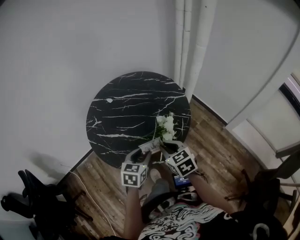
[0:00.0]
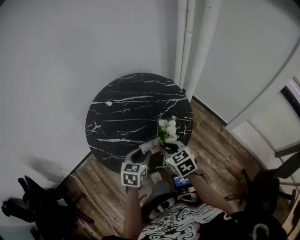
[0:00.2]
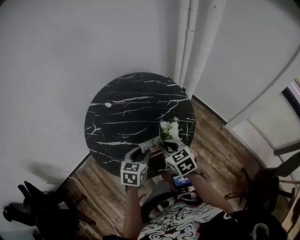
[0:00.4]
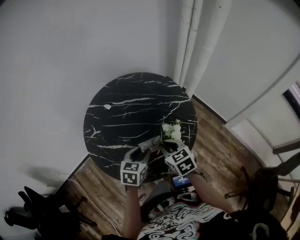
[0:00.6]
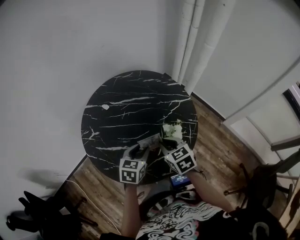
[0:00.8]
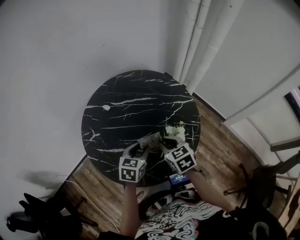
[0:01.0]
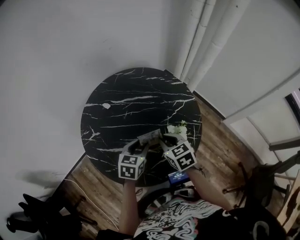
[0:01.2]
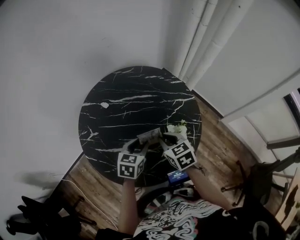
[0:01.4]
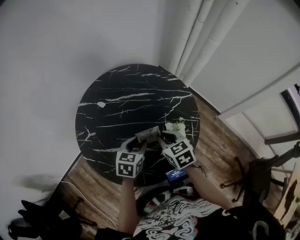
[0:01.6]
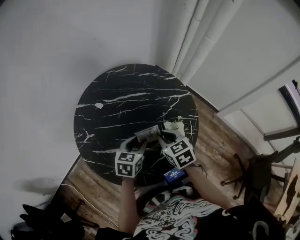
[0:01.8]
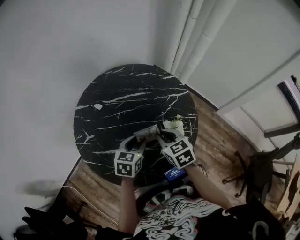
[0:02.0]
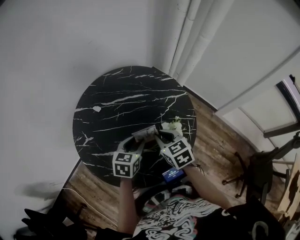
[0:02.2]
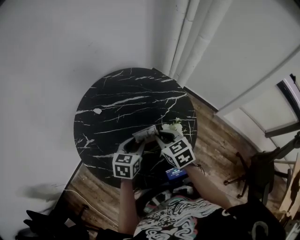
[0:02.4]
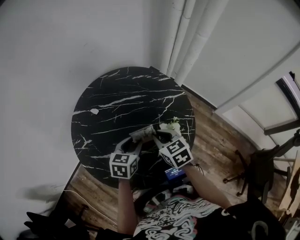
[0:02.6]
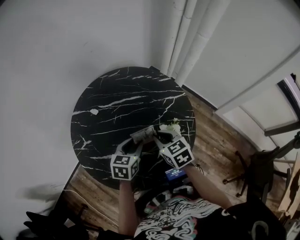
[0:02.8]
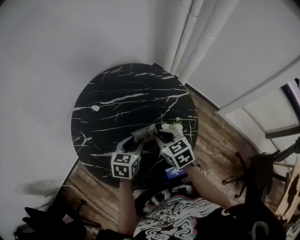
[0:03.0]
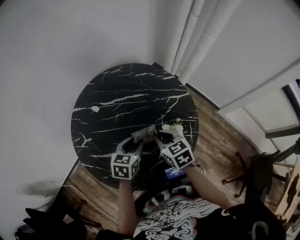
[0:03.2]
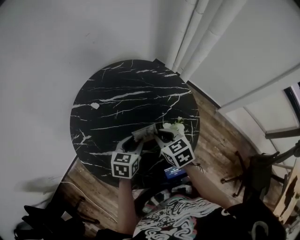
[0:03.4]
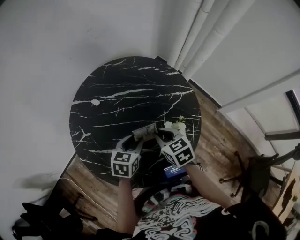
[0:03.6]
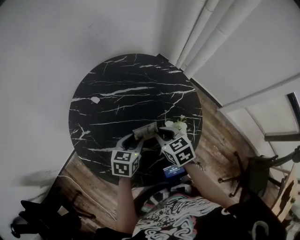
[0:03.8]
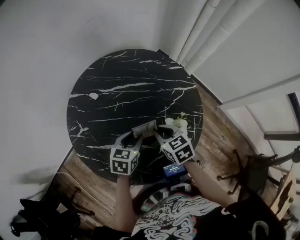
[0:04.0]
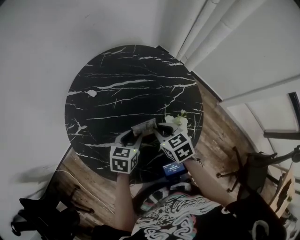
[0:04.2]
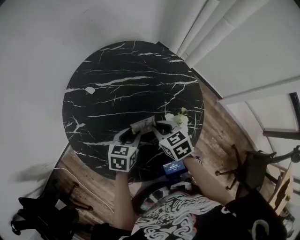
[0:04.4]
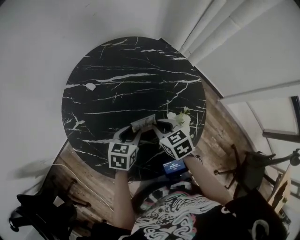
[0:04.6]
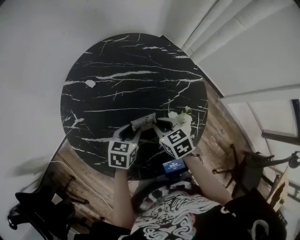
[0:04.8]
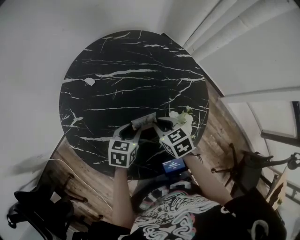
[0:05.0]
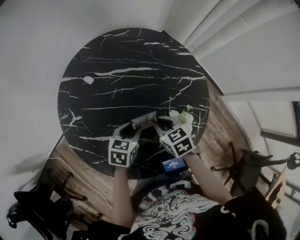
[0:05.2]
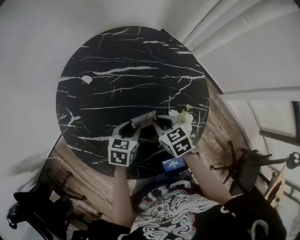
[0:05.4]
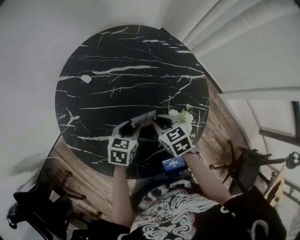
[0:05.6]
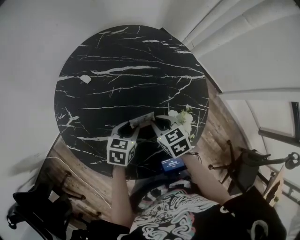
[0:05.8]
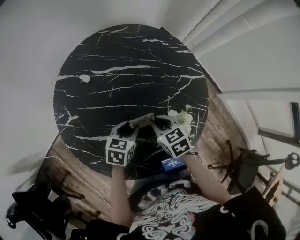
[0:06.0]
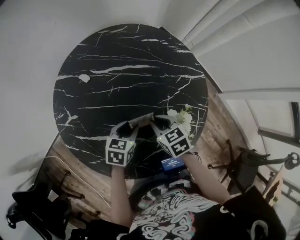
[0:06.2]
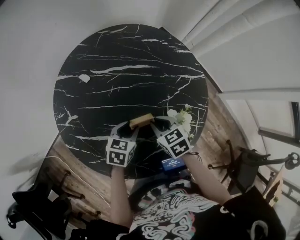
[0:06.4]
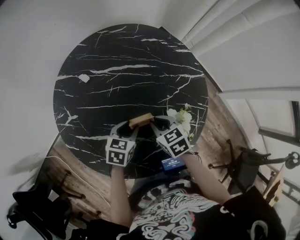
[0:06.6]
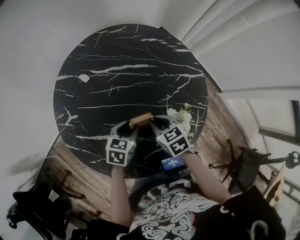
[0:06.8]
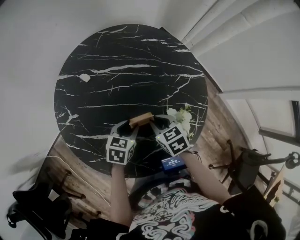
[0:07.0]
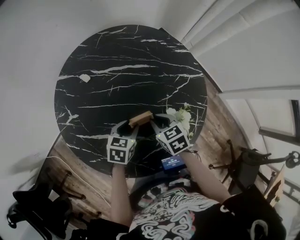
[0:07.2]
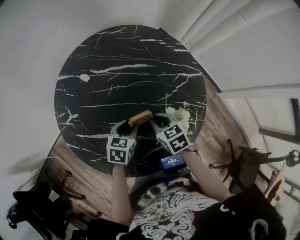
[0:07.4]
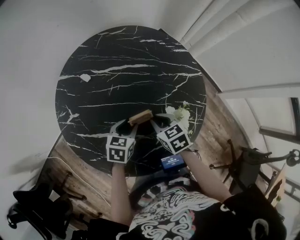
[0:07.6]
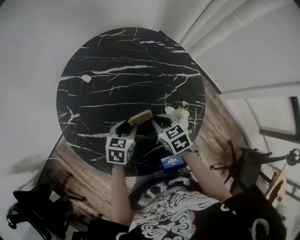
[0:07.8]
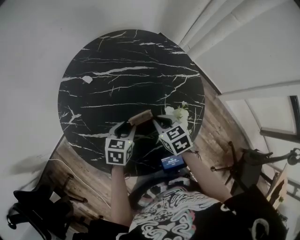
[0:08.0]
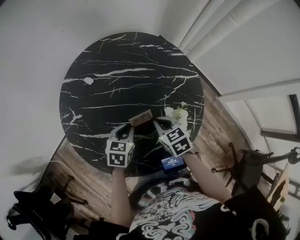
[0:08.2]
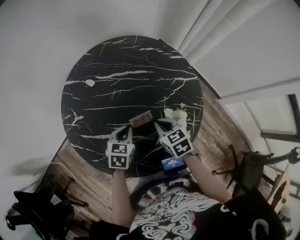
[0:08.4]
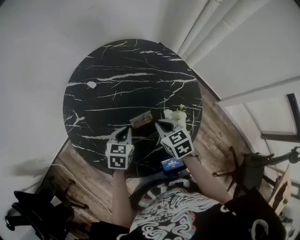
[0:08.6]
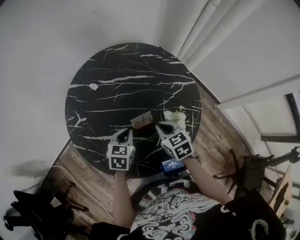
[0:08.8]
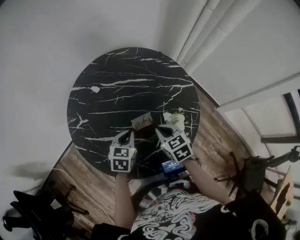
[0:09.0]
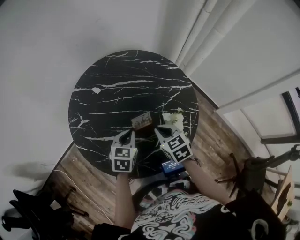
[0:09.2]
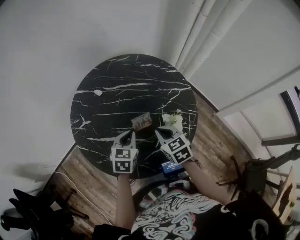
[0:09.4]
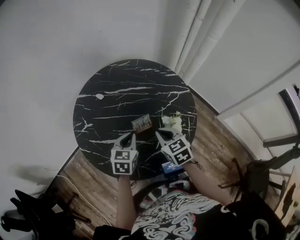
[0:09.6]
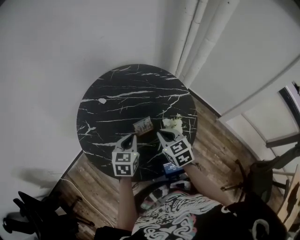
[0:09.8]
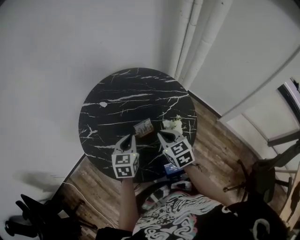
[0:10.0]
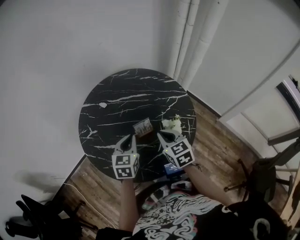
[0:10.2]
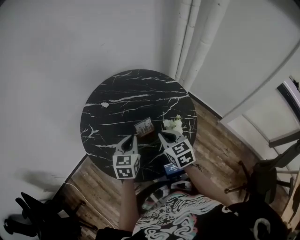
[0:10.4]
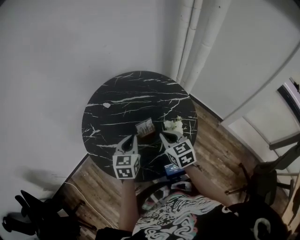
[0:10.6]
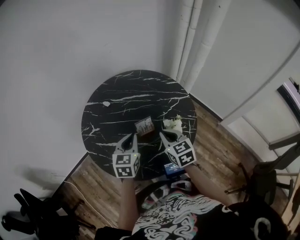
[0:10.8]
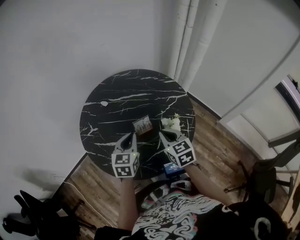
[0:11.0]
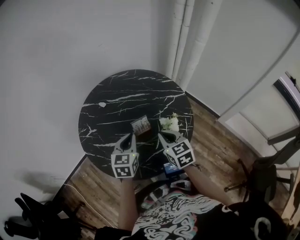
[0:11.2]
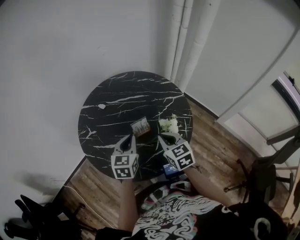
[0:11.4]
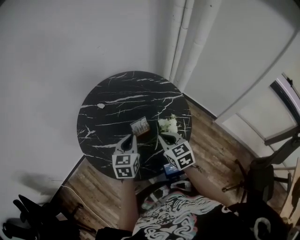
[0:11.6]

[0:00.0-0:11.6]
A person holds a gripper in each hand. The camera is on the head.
0:00.0 to 0:01.4: Both grippers move forward and to the left, some 20 cm.
0:01.4 to 0:02.8: The grippers move only a little.
0:02.8 to 0:04.4: The two grippers go some 5 cm downward.
0:04.4 to 0:05.8: The left gripper travels downward by about 5 cm.
0:05.8 to 0:07.2: The two grippers keep their place.
0:07.2 to 0:08.8: Both grippers travel together upward, about 5 cm. The left gripper closes its fingers.
0:08.8 to 0:10.2: The two grippers go approximately 10 cm upward.
0:10.2 to 0:11.6: The grippers move only a little.

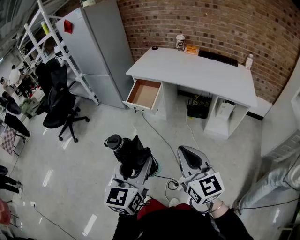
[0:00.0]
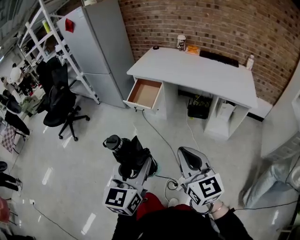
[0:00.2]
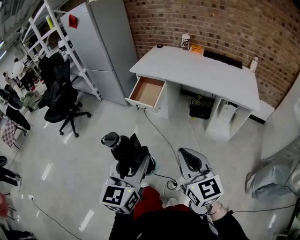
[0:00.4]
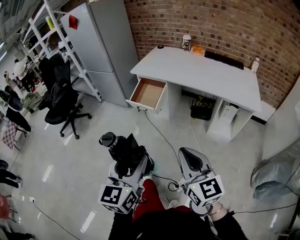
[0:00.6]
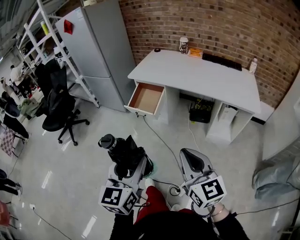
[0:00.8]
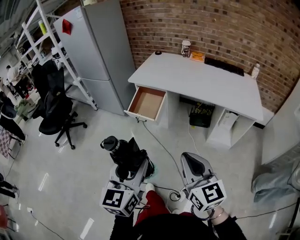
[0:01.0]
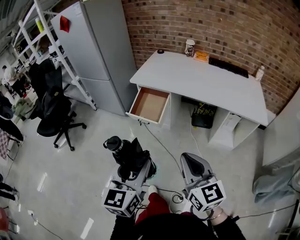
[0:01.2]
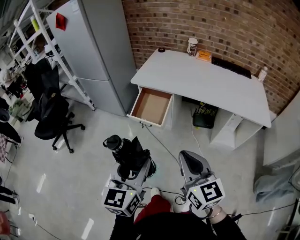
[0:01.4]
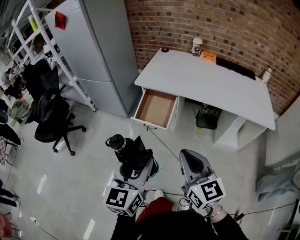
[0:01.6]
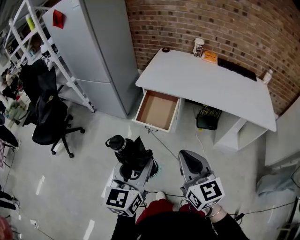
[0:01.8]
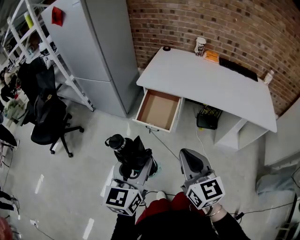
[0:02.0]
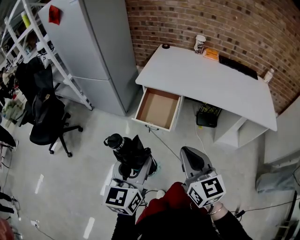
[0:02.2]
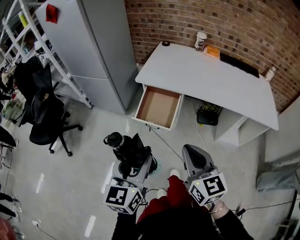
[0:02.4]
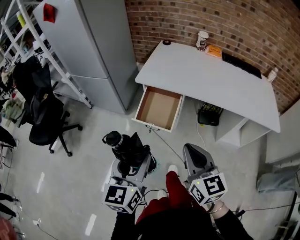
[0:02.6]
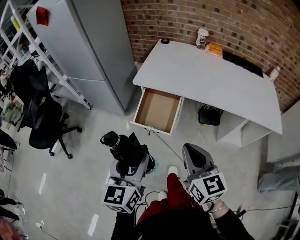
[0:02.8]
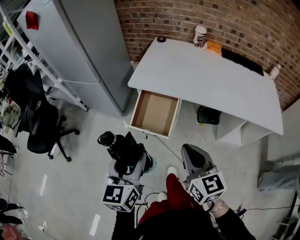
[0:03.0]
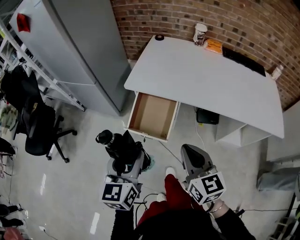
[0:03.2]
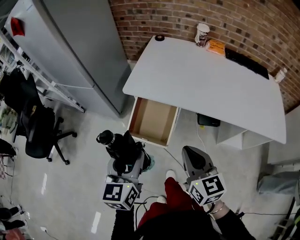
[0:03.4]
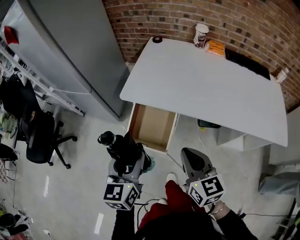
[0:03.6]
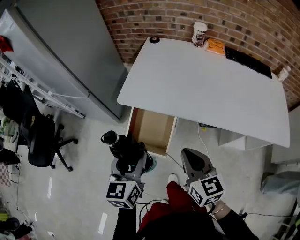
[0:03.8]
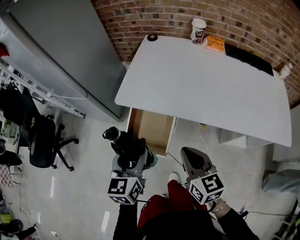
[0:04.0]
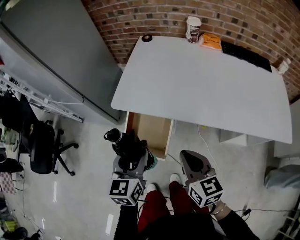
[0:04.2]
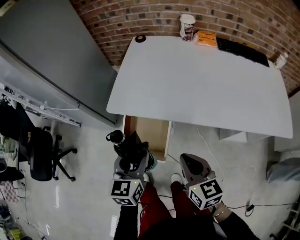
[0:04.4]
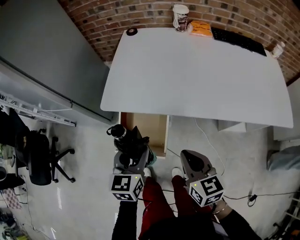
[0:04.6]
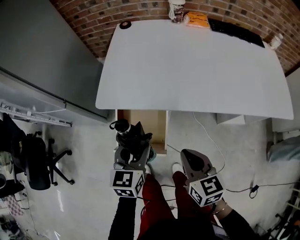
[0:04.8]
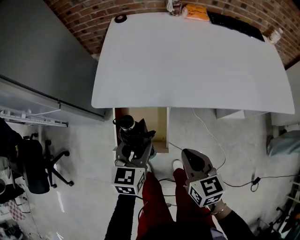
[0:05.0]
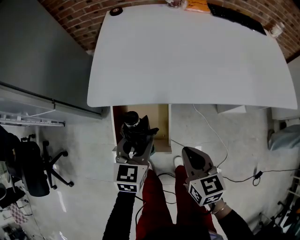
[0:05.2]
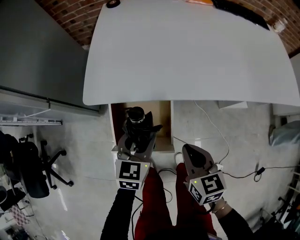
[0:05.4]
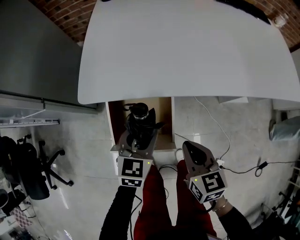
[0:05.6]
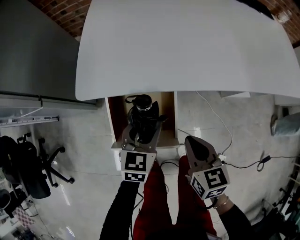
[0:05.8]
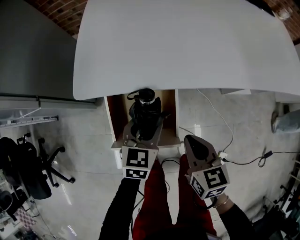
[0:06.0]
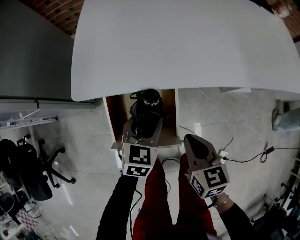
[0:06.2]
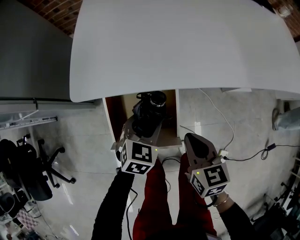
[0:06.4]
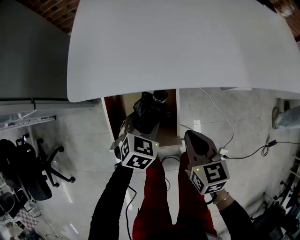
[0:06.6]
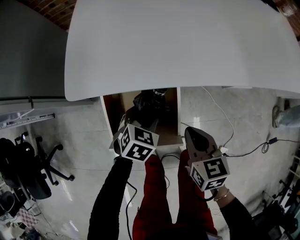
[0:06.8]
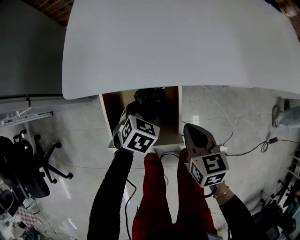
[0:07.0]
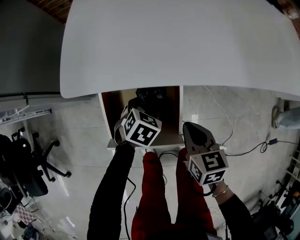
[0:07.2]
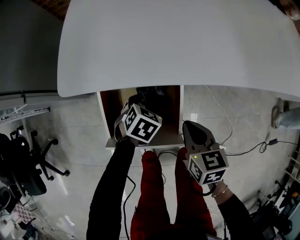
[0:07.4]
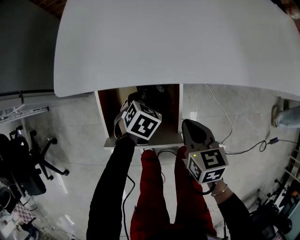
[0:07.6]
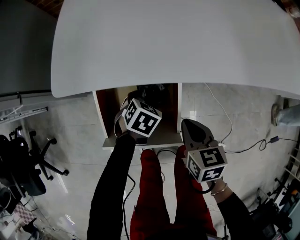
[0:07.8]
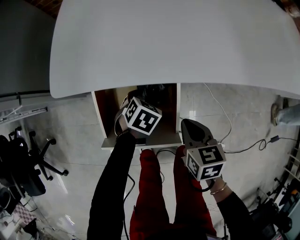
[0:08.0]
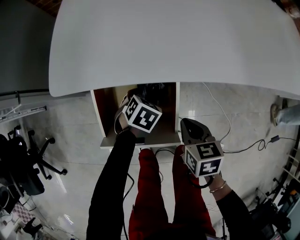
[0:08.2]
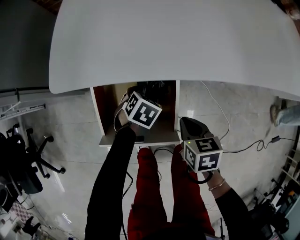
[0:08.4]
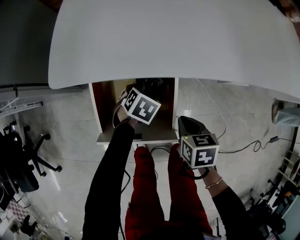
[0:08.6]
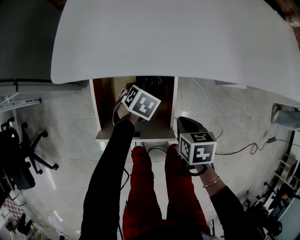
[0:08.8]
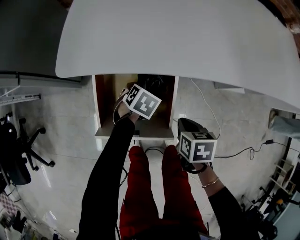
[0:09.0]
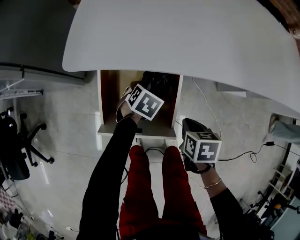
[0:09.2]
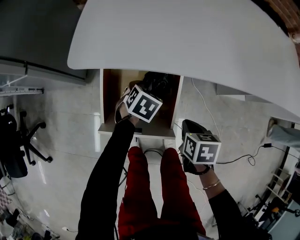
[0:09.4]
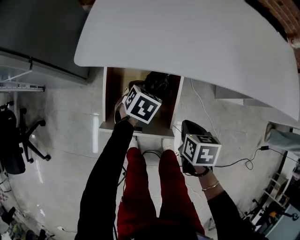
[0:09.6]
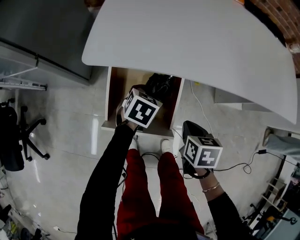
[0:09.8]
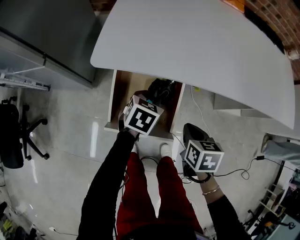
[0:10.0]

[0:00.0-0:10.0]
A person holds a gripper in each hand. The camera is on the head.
0:00.0 to 0:01.4: The two grippers go roughly 25 cm forward and to the left.
0:01.4 to 0:02.8: The left gripper travels forward and to the left by approximately 20 cm. Meanwhile the right gripper travels forward by about 15 cm.
0:02.8 to 0:04.2: The left gripper heads forward, covering some 25 cm, while the right gripper moves forward and downward, approximately 20 cm.
0:04.2 to 0:05.8: The right gripper moves downward, roughly 20 cm, and swivels approximately 30 degrees; the left gripper is displaced downward and forward by roughly 25 cm, and swivels approximately 30 degrees.
0:05.8 to 0:07.2: The right gripper is displaced downward by approximately 5 cm, while the left gripper heads downward, covering roughly 15 cm, and turns by roughly 30 degrees.
0:07.2 to 0:08.6: The grippers both shift downward by about 5 cm.
0:08.6 to 0:10.0: The right gripper is displaced upward by roughly 10 cm. Meanwhile the left gripper travels upward by approximately 15 cm, rotates about 20 degrees, and closes up.

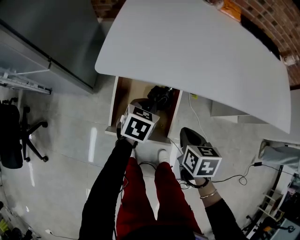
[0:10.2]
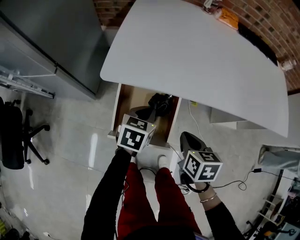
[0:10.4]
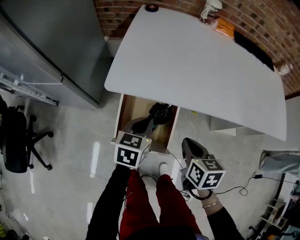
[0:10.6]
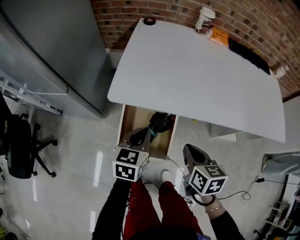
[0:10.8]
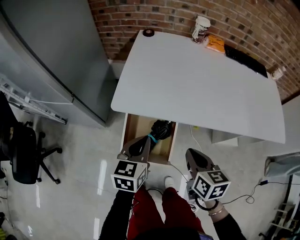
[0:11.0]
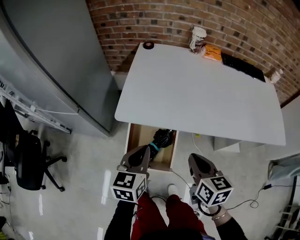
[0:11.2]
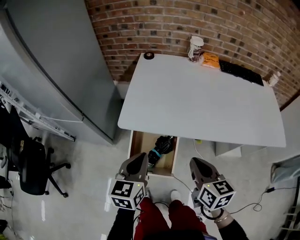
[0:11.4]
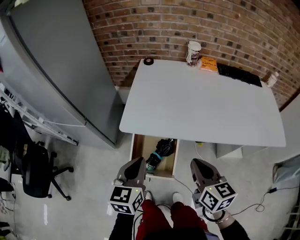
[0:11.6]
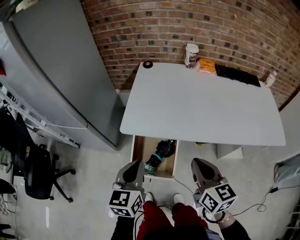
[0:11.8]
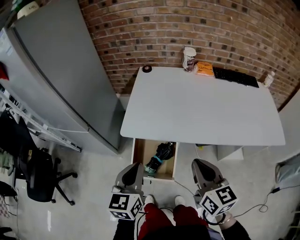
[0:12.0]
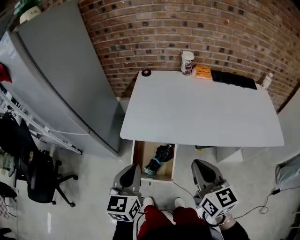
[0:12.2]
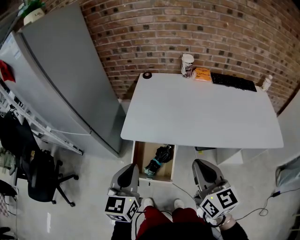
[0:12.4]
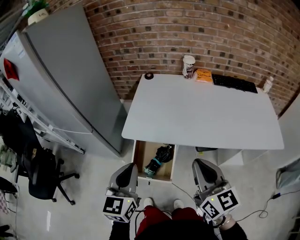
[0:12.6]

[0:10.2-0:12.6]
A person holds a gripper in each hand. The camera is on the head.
0:10.2 to 0:11.4: Both grippers travel together upward, about 20 cm. The left gripper changes its angle by approximately 30 degrees. The right gripper changes its angle by about 30 degrees.
0:11.4 to 0:12.6: The right gripper travels upward by roughly 15 cm, and swivels roughly 20 degrees. Meanwhile the left gripper shifts approximately 15 cm upward and backward.
